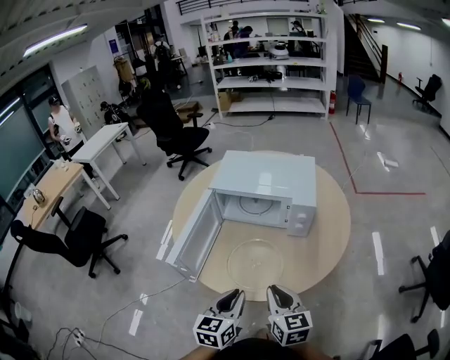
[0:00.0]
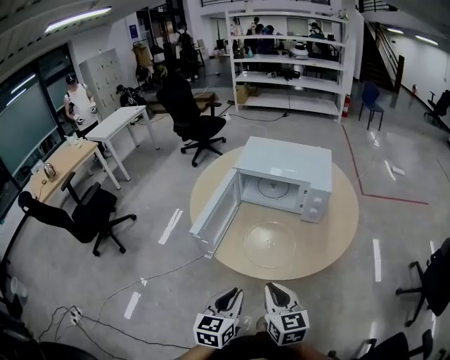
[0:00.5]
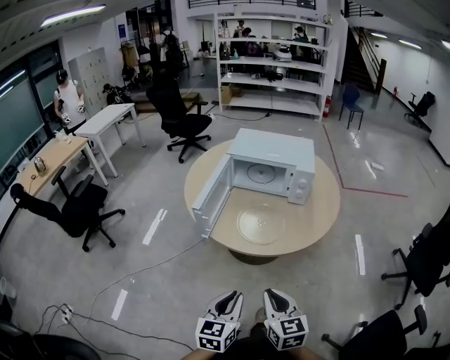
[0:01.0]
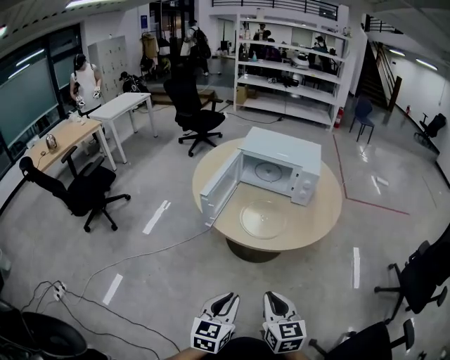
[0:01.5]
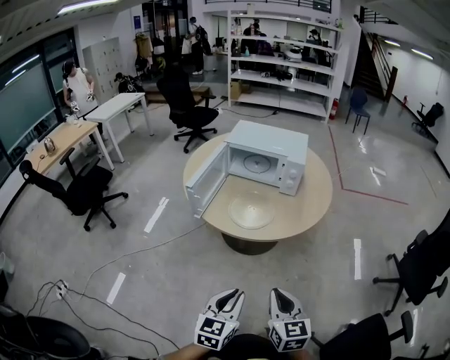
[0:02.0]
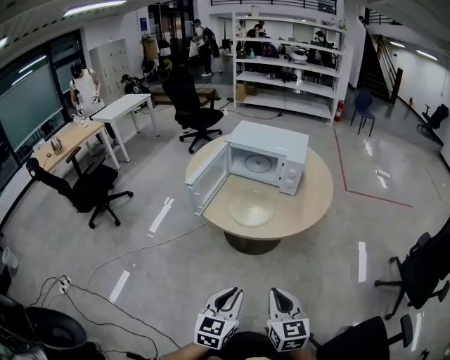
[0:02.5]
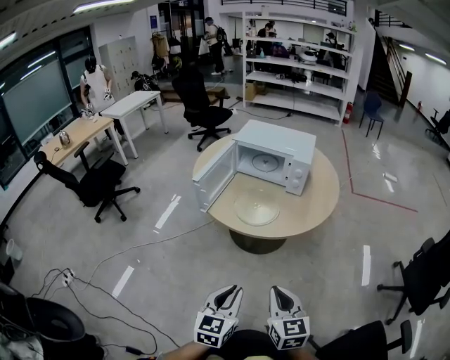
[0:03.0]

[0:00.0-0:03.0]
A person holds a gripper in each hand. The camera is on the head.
0:00.0 to 0:01.5: The two grippers go approximately 35 cm backward.
0:01.5 to 0:03.0: Both grippers move to the right, some 10 cm.

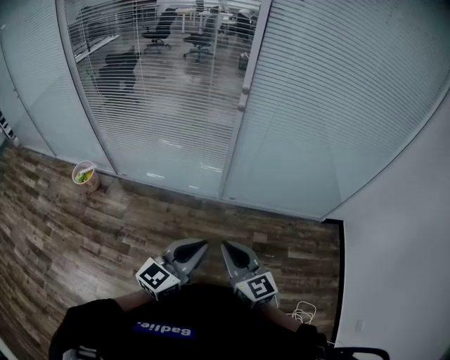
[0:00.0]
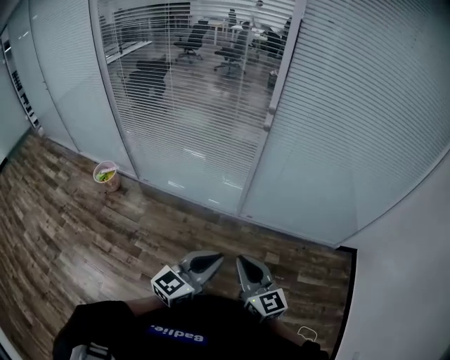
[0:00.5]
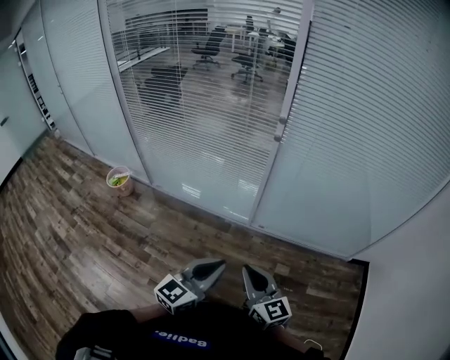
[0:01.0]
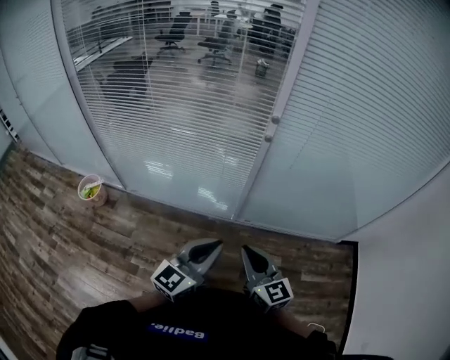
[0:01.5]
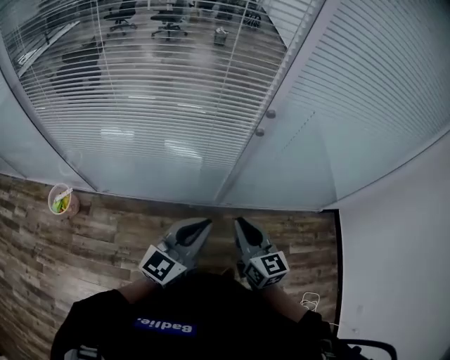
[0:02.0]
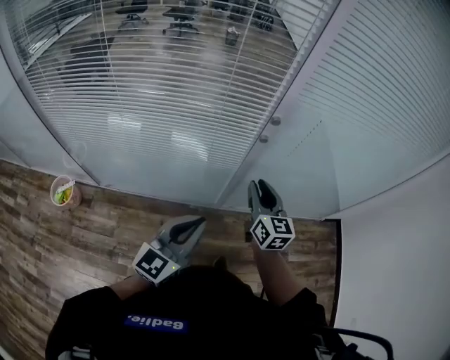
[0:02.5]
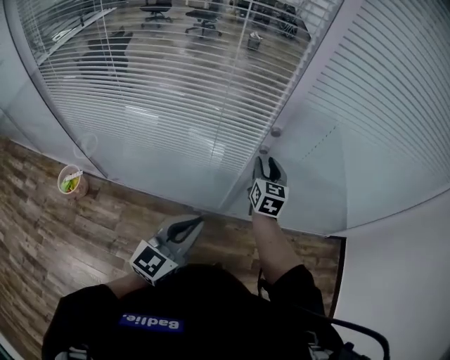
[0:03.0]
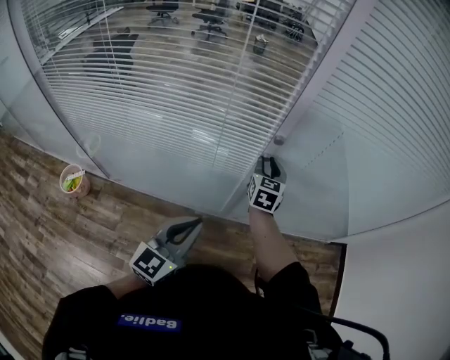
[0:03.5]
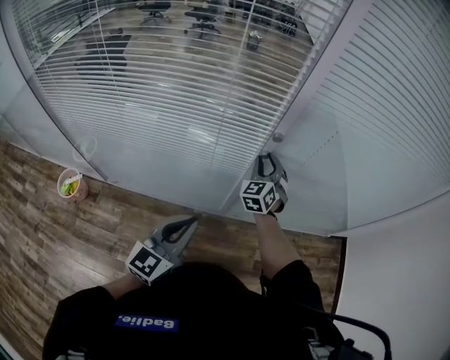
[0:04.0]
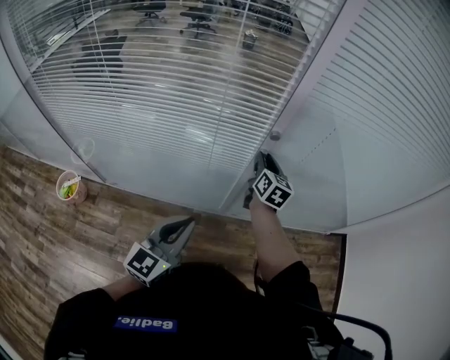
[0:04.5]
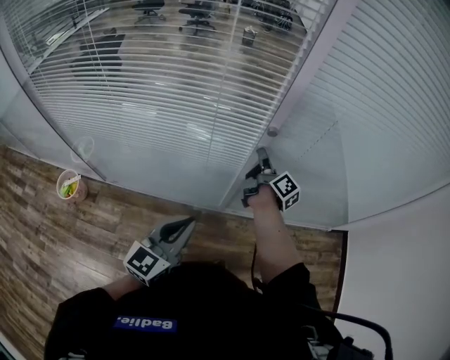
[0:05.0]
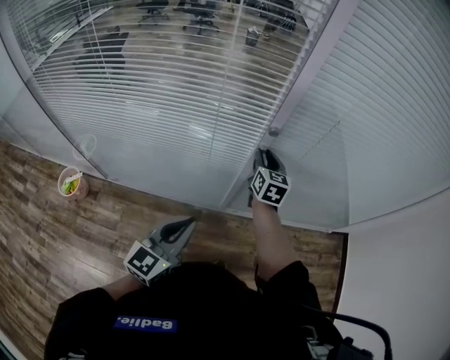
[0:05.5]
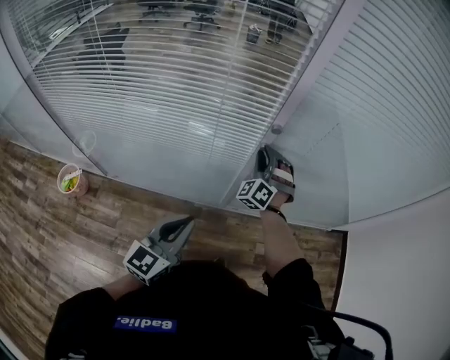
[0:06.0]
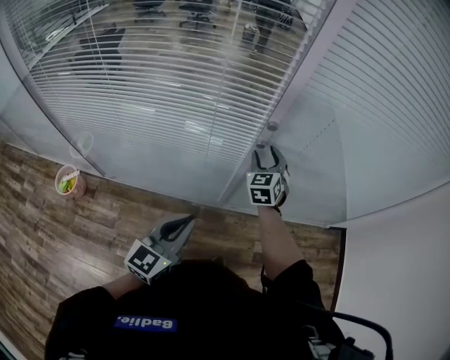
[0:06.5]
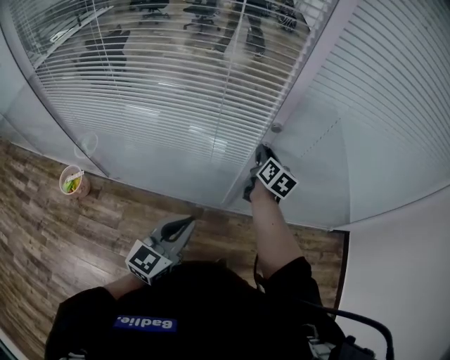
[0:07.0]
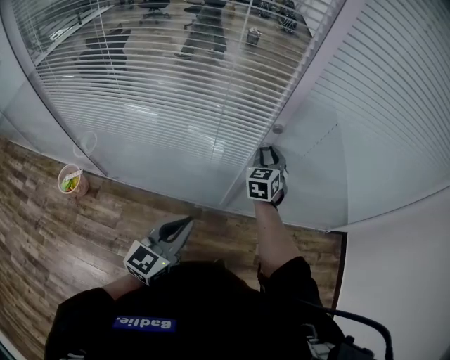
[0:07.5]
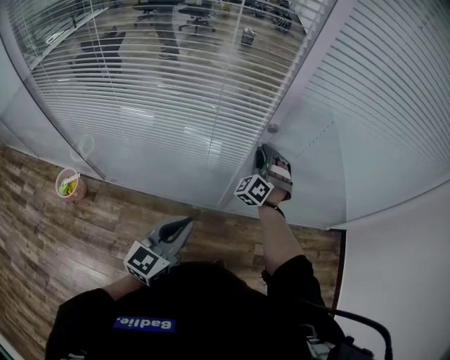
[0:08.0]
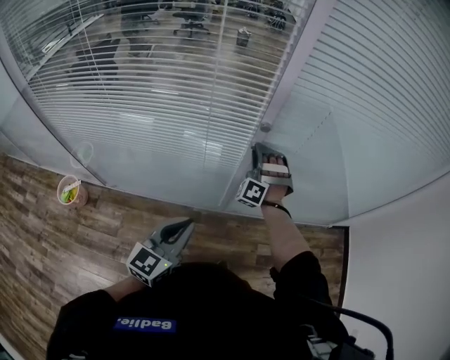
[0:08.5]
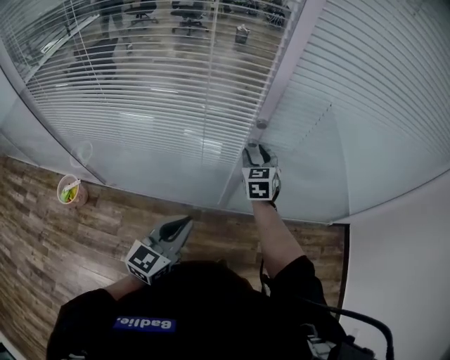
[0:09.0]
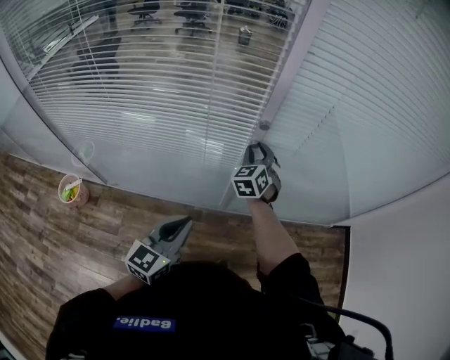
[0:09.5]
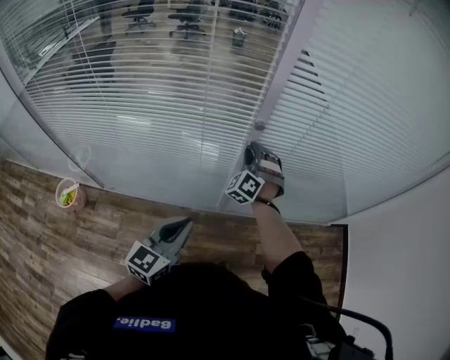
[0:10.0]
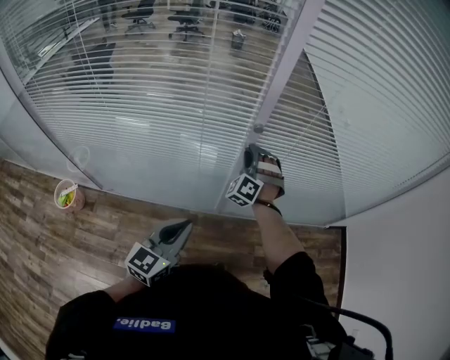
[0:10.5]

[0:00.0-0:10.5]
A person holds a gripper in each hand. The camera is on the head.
0:00.0 to 0:02.0: The right gripper goes about 25 cm forward, while the left gripper shifts about 25 cm forward and to the left.
0:02.0 to 0:04.0: The left gripper shifts roughly 5 cm forward, while the right gripper goes approximately 30 cm forward, rotates around the line of its fingers by about 40 degrees, counterclockwise from behind, and opens its fingers.
0:06.5 to 0:08.5: The right gripper rotates around the line of its fingers by approximately 60 degrees, counterclockwise from behind.

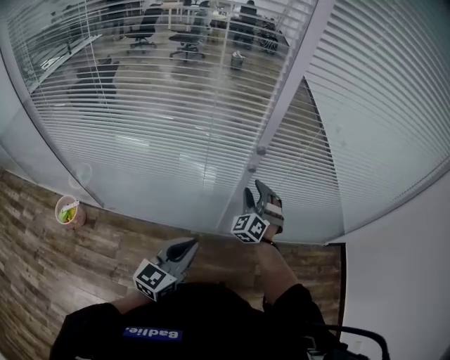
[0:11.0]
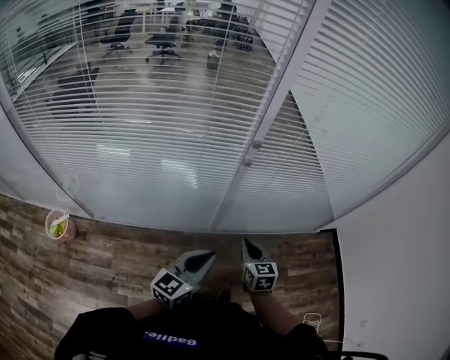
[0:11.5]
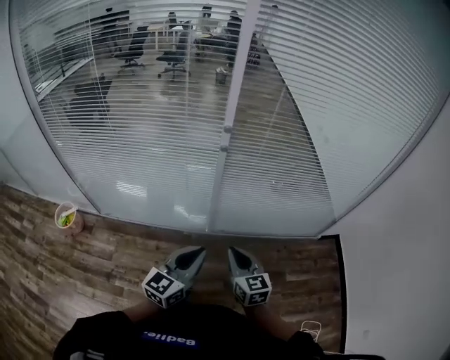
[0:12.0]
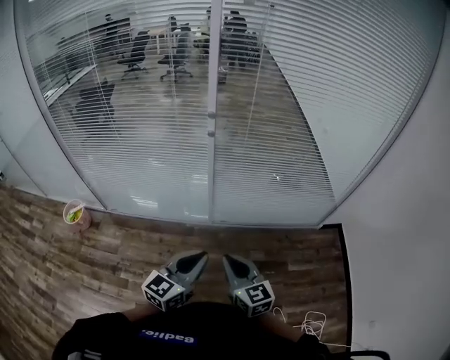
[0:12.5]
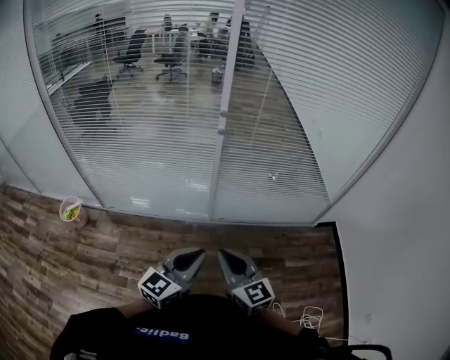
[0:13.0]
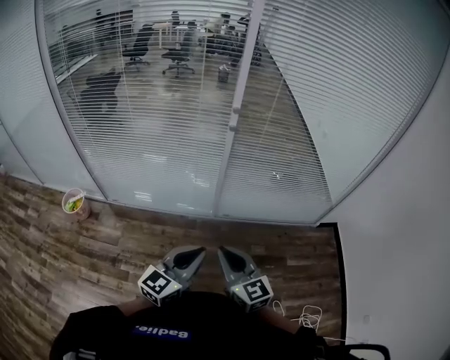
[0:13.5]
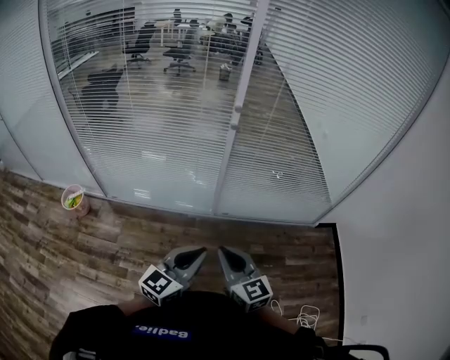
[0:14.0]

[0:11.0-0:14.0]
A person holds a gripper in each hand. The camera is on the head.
0:11.0 to 0:12.5: The left gripper is displaced to the right and backward by some 25 cm. Meanwhile the right gripper moves backward, approximately 40 cm, rotates around the line of its fingers by some 60 degrees, clockwise from behind, and closes its fingers.
0:12.5 to 0:14.0: The left gripper is displaced to the left and backward by approximately 10 cm, while the right gripper travels to the left by roughly 10 cm.

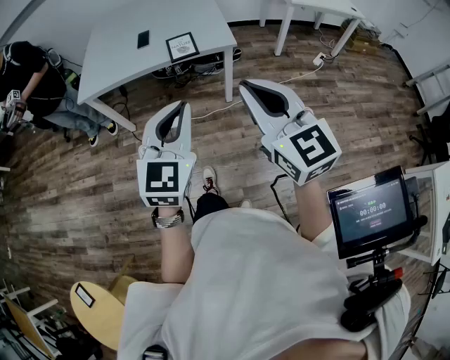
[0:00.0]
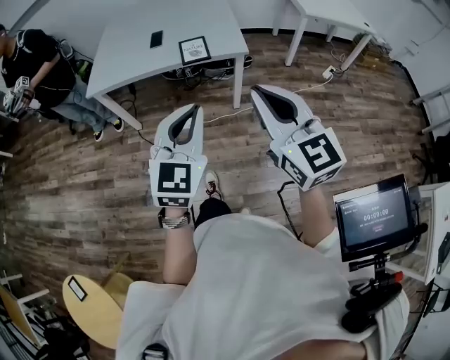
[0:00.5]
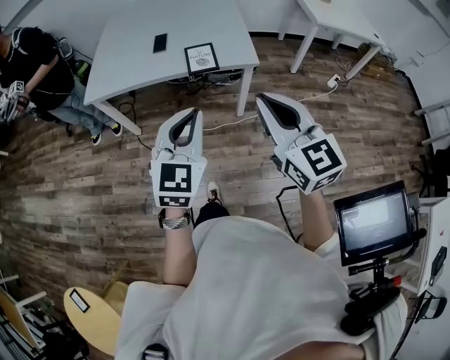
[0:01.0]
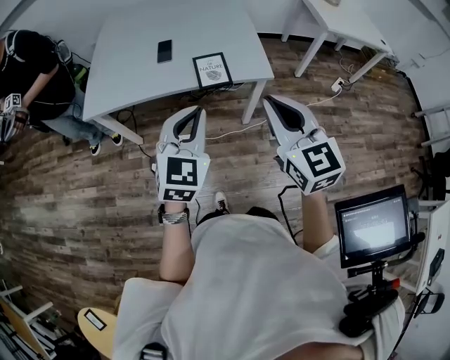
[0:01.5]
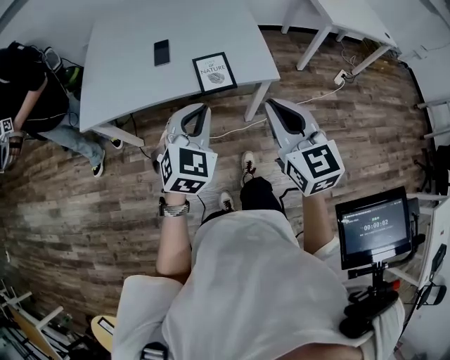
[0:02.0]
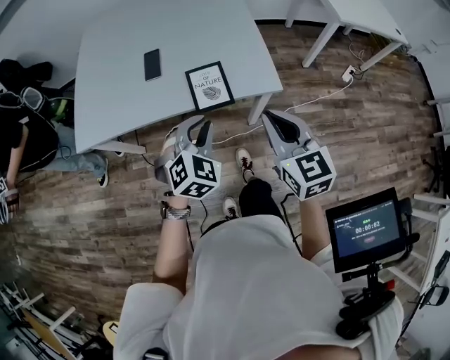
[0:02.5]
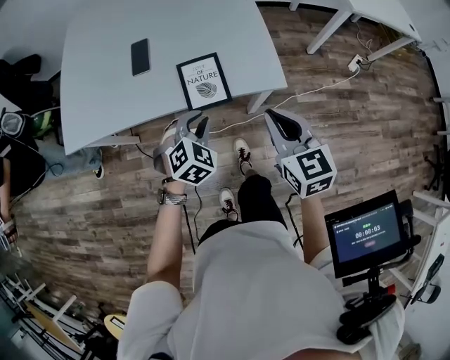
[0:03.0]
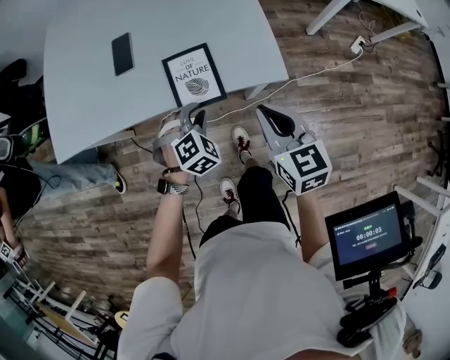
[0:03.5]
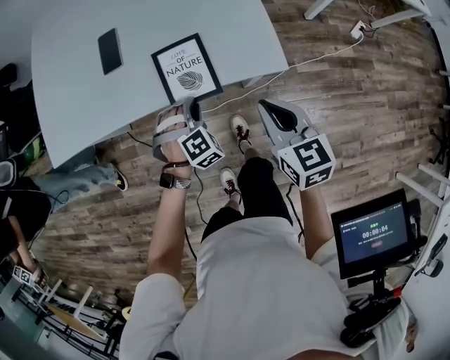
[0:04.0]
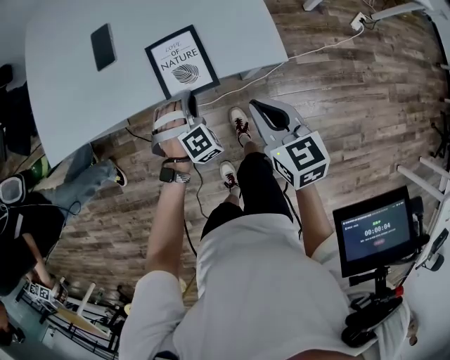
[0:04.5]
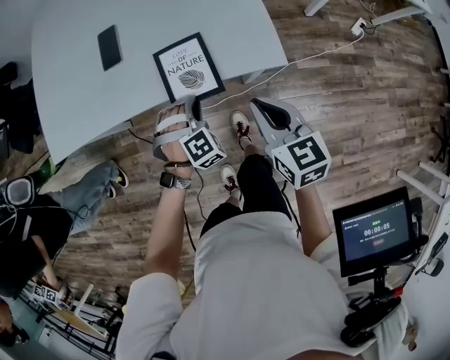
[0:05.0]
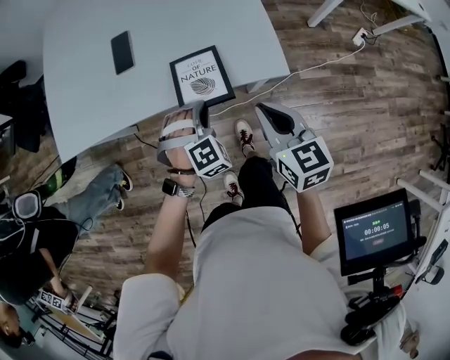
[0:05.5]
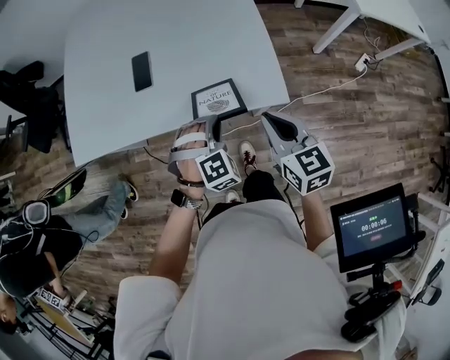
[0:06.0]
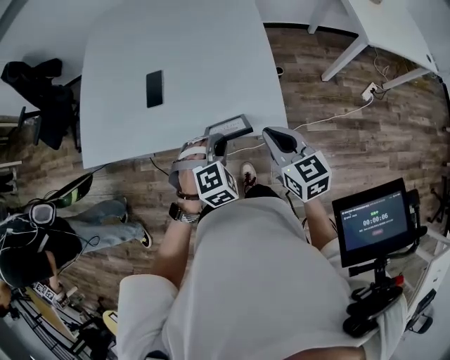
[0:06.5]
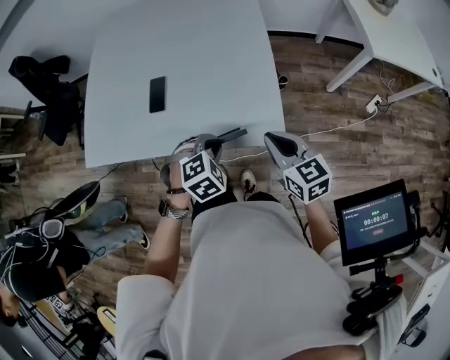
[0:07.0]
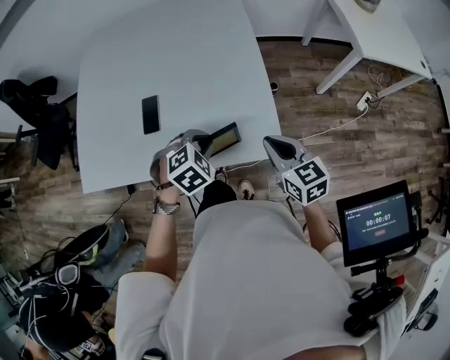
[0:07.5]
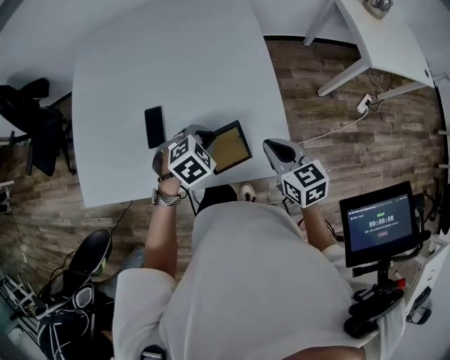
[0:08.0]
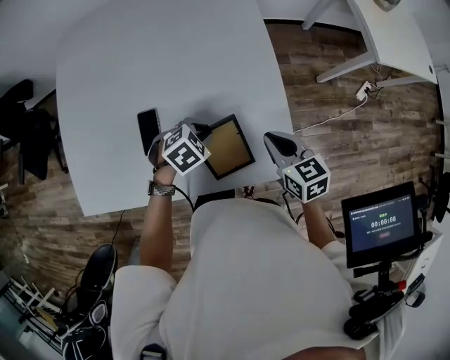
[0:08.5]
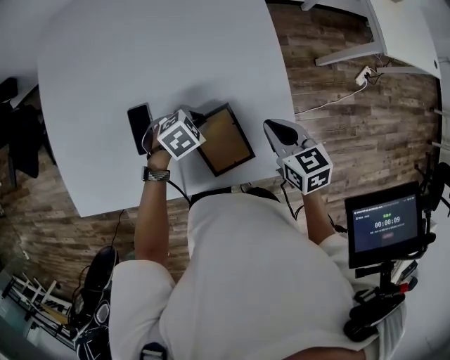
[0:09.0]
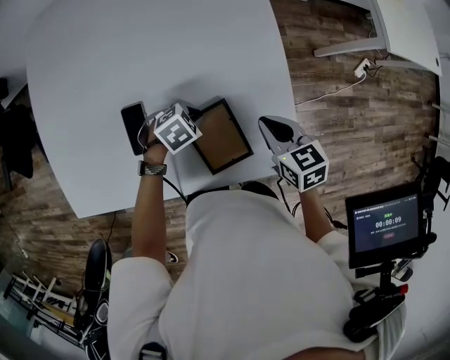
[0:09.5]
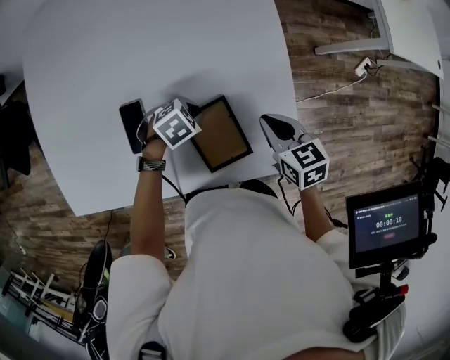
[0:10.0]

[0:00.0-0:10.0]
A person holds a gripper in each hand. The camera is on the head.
0:00.0 to 0:02.0: Both grippers move forward, roughly 30 cm.
0:02.0 to 0:04.0: Both grippers travel together downward and forward, some 30 cm. The right gripper changes its angle by about 20 degrees; the left gripper angles its fingers downward, by roughly 30 degrees.
0:04.0 to 0:06.0: The right gripper is displaced upward by some 5 cm. Meanwhile the left gripper moves upward, some 10 cm.
0:06.0 to 0:08.0: Both grippers move forward, roughly 15 cm. The left gripper rotates approximately 40 degrees.
0:08.0 to 0:10.0: The left gripper goes approximately 10 cm downward, and turns by about 20 degrees. The right gripper is displaced downward by approximately 5 cm.
